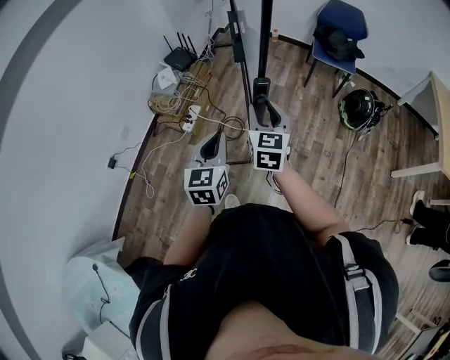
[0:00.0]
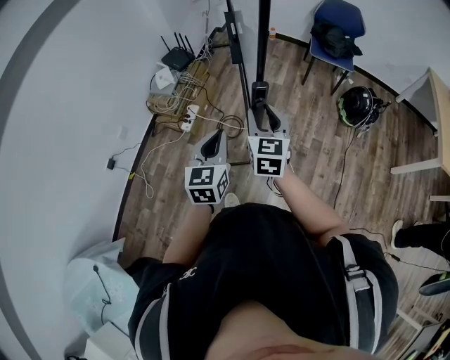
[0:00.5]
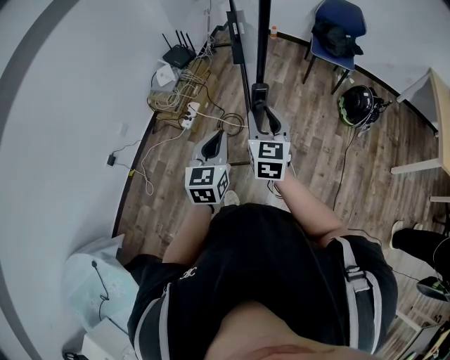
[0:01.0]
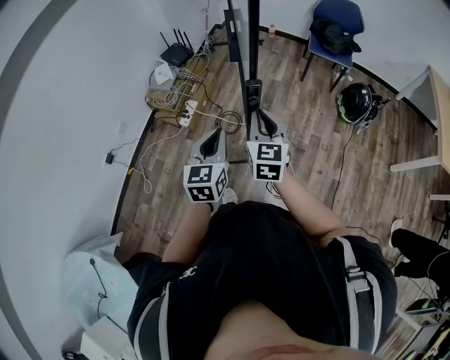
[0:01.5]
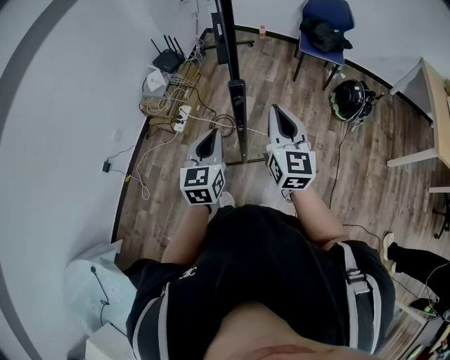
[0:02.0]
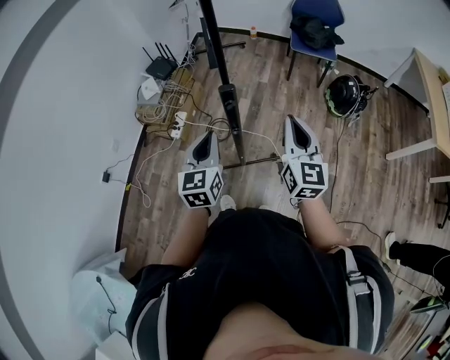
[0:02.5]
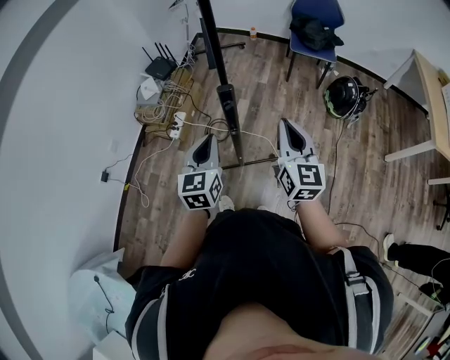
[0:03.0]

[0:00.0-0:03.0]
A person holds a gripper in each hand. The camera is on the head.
0:00.0 to 0:01.5: The right gripper shifts about 5 cm backward, and closes up.
0:01.5 to 0:03.0: The right gripper heads to the right, covering approximately 10 cm.

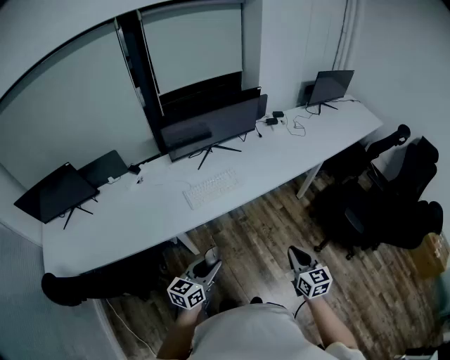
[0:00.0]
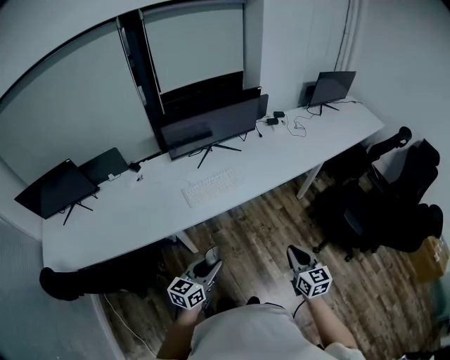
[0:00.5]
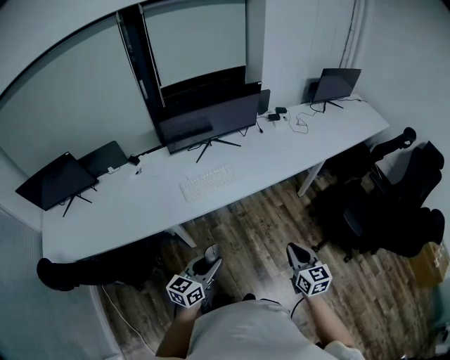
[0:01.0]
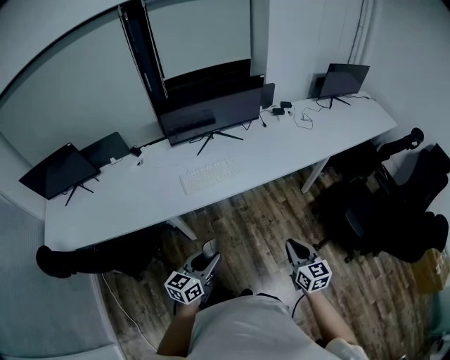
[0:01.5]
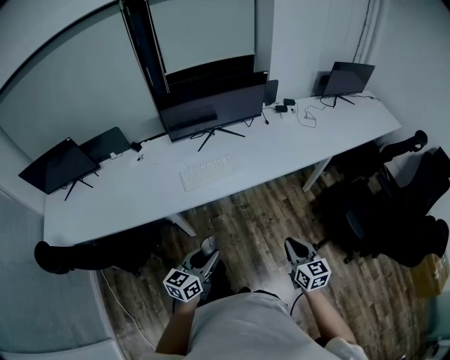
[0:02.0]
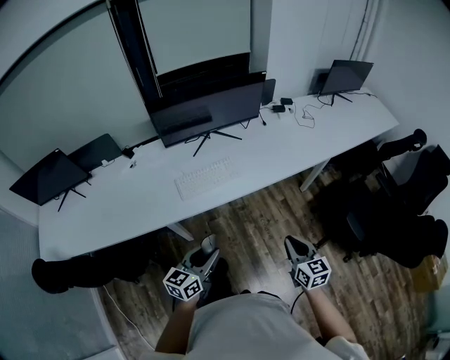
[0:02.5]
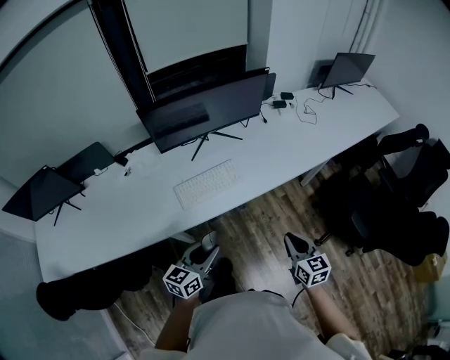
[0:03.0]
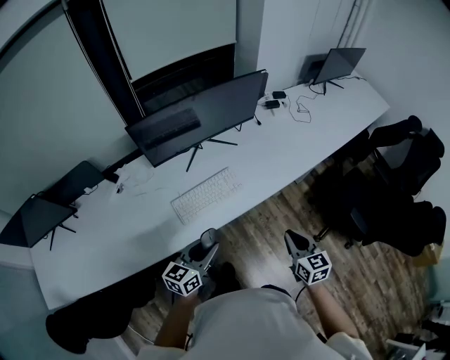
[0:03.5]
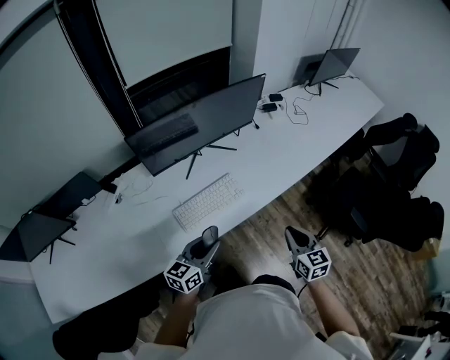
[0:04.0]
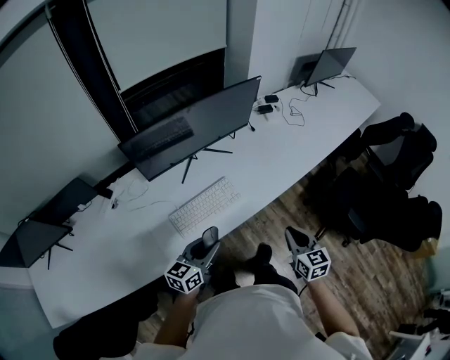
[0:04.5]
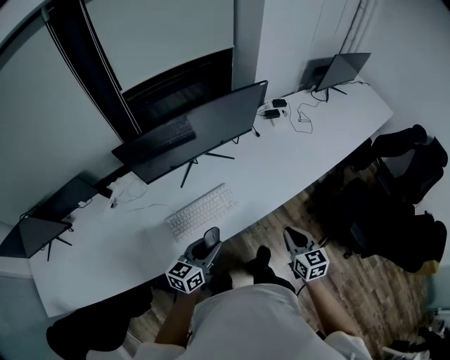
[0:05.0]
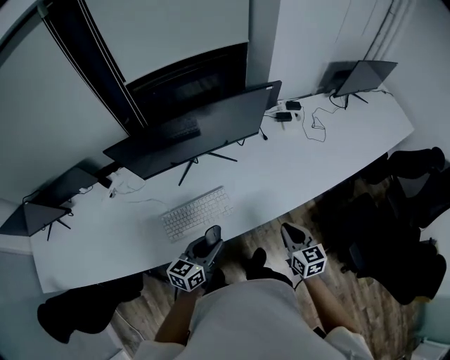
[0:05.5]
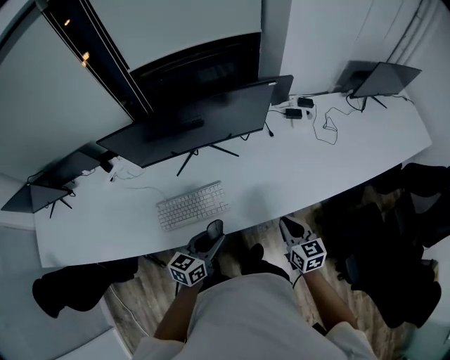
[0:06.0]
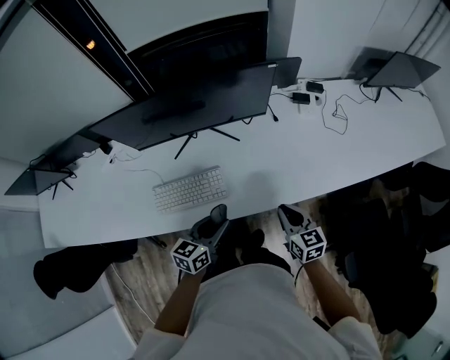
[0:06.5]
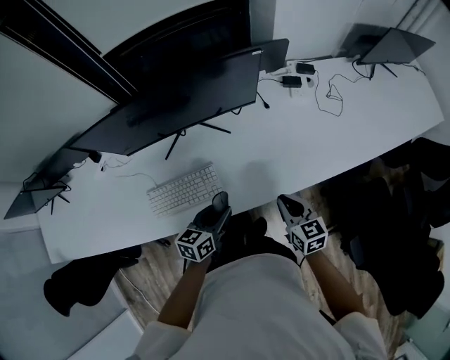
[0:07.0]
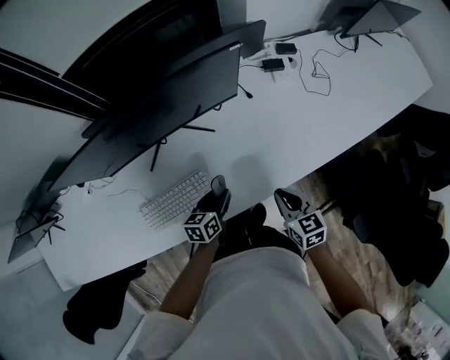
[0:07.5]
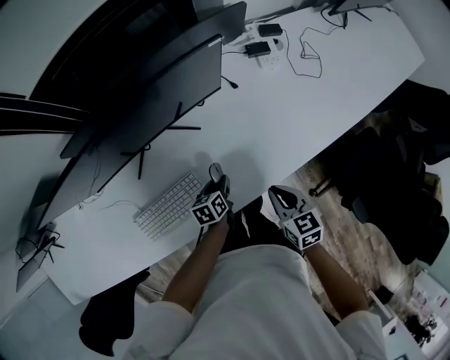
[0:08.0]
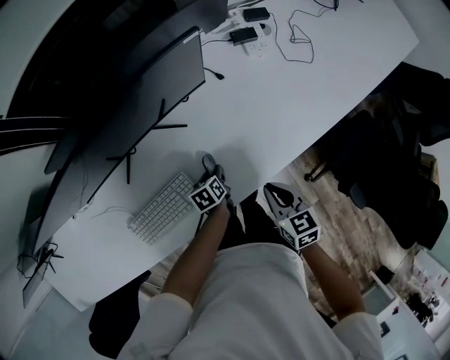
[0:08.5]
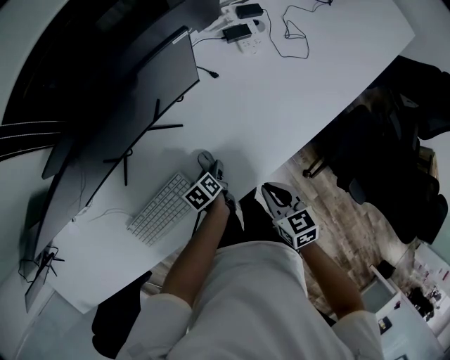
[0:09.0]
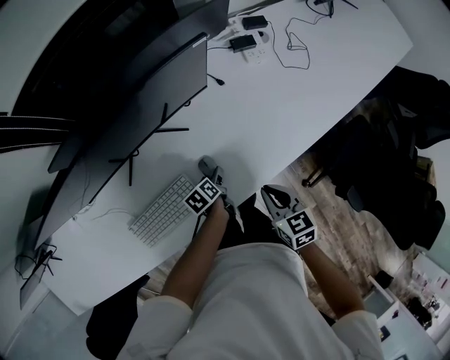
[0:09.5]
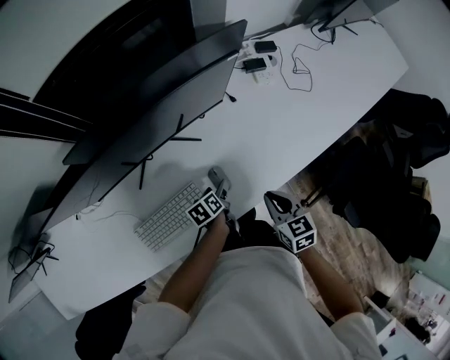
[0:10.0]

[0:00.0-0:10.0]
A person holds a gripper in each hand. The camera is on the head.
0:00.0 to 0:02.0: Both grippers move to the right, roughly 5 cm.
0:02.0 to 0:04.0: Both grippers travel together forward and to the left, approximately 25 cm.
0:04.0 to 0:06.0: The right gripper goes roughly 20 cm forward, and changes its angle by roughly 20 degrees; the left gripper moves to the right and forward, roughly 20 cm.
0:06.0 to 0:08.0: The left gripper is displaced downward and forward by about 25 cm, and changes its angle by approximately 30 degrees; the right gripper heads downward and forward, covering roughly 10 cm.
0:08.0 to 0:10.0: The left gripper opens.

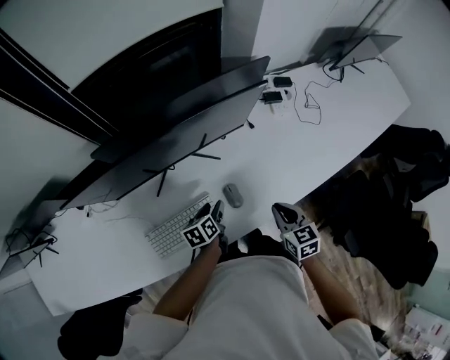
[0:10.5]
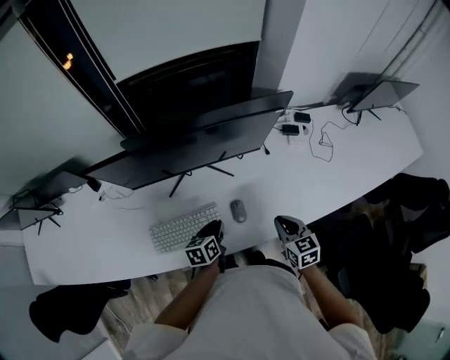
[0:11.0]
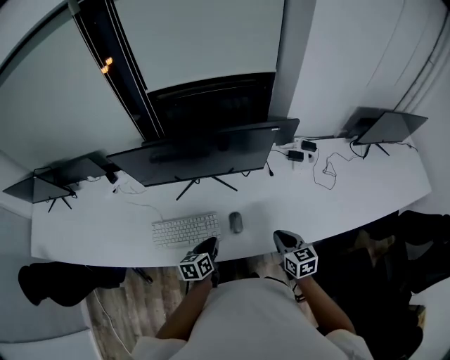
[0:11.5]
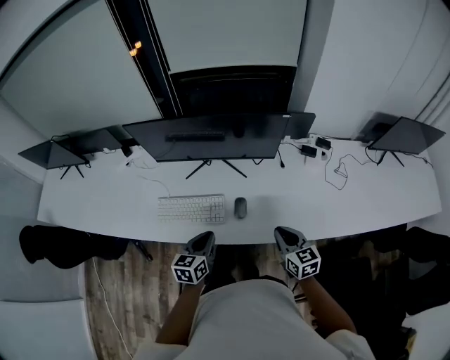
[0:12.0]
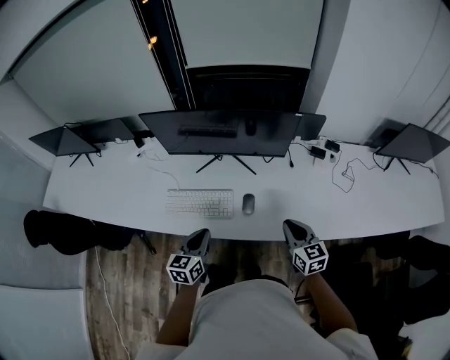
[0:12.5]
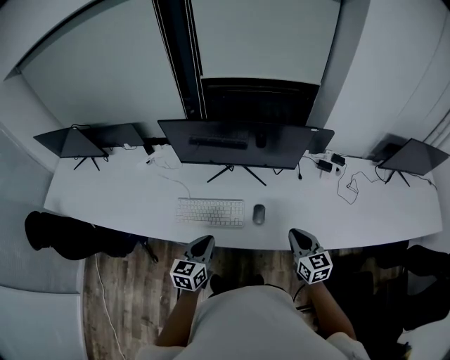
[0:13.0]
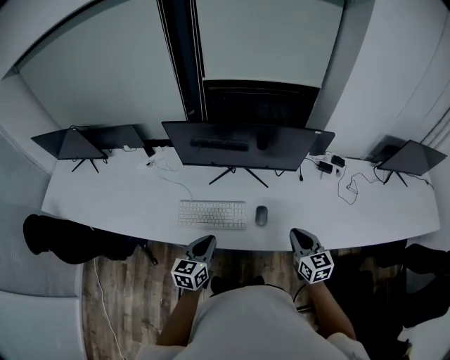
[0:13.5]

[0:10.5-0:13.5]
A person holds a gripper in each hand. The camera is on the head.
0:10.5 to 0:12.0: The right gripper moves upward, some 5 cm, and rotates approximately 30 degrees, while the left gripper changes place by some 20 cm, rotates some 30 degrees, and closes its fingers.
0:12.0 to 0:13.5: The left gripper shifts roughly 10 cm to the left. Meanwhile the right gripper ends up roughly 5 cm from where it was.

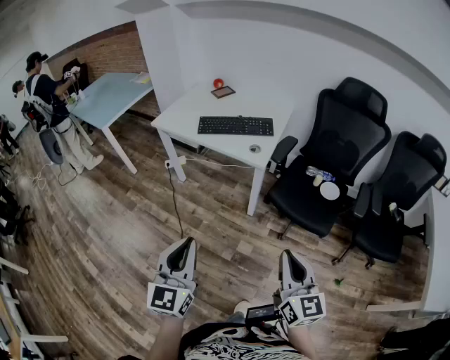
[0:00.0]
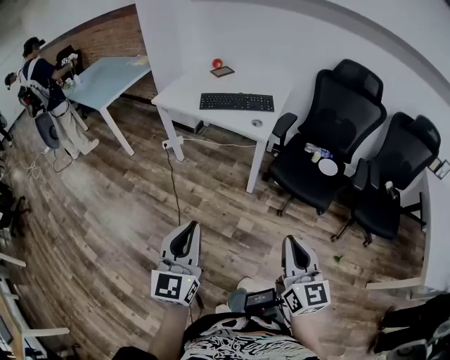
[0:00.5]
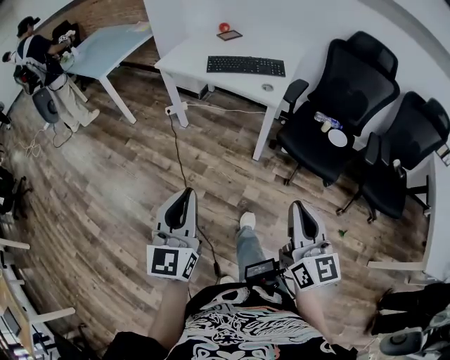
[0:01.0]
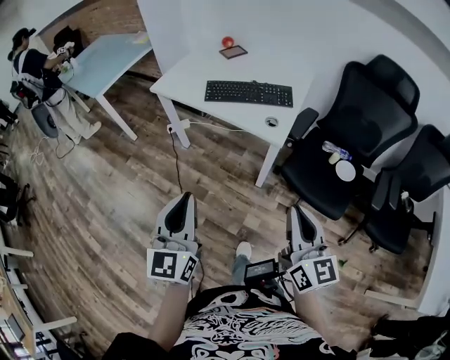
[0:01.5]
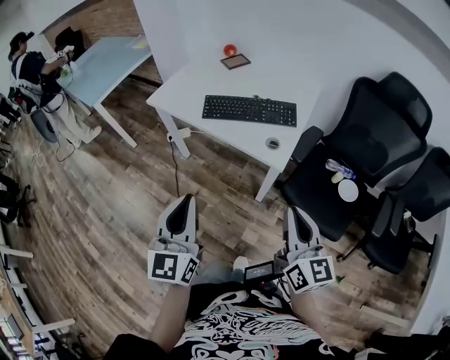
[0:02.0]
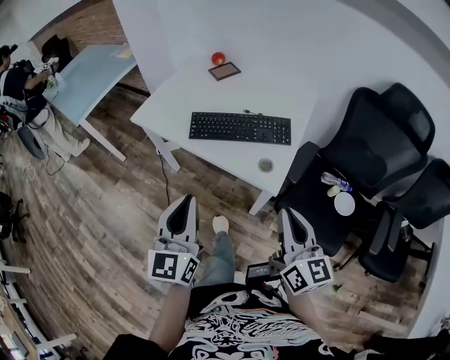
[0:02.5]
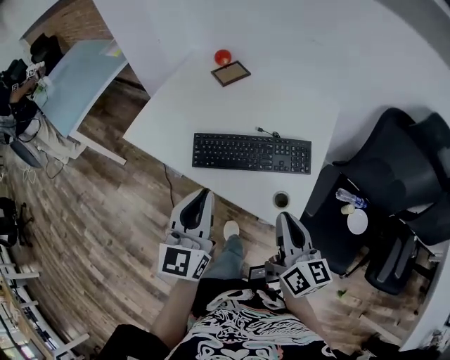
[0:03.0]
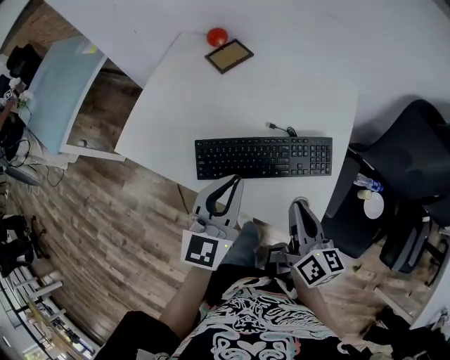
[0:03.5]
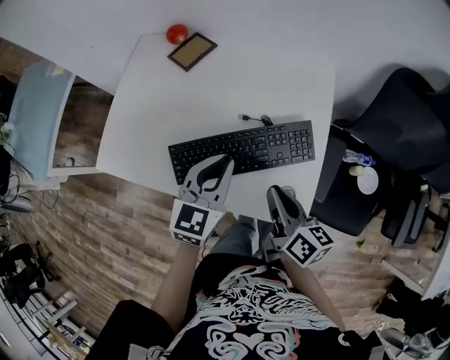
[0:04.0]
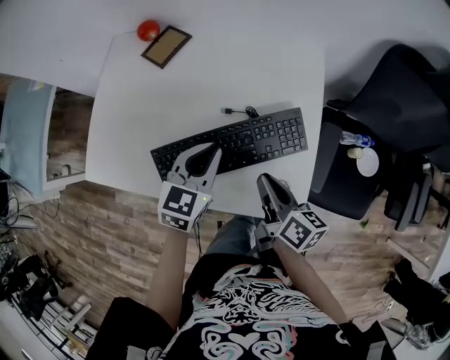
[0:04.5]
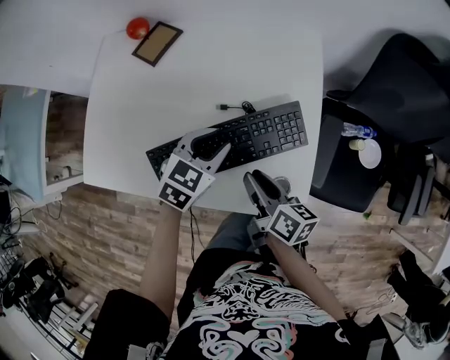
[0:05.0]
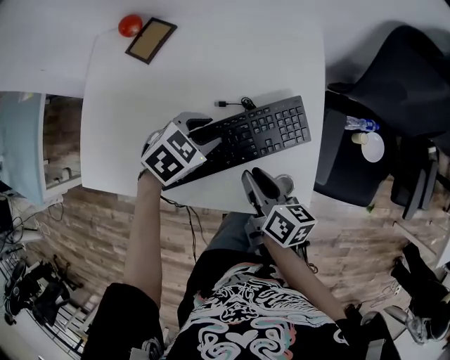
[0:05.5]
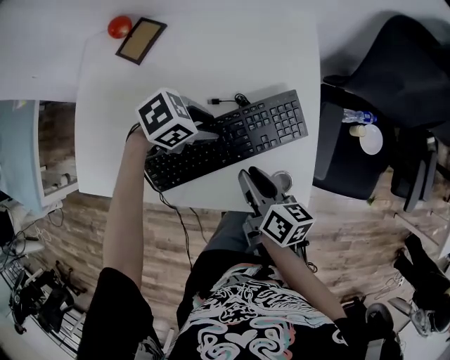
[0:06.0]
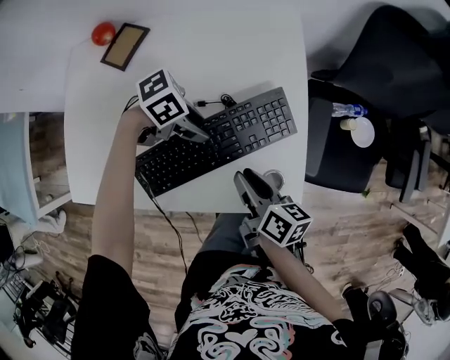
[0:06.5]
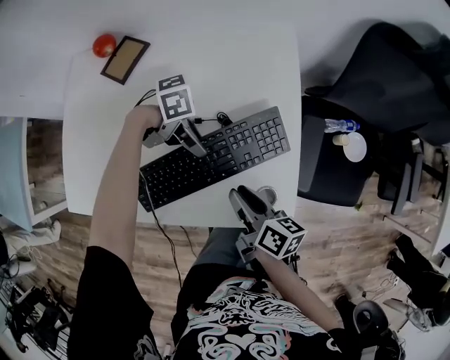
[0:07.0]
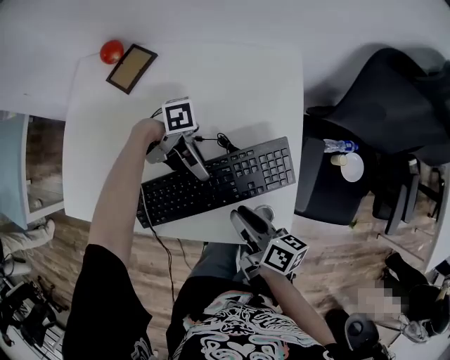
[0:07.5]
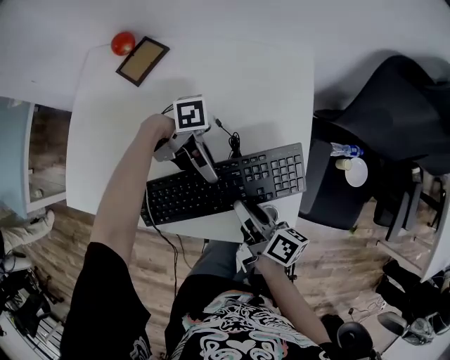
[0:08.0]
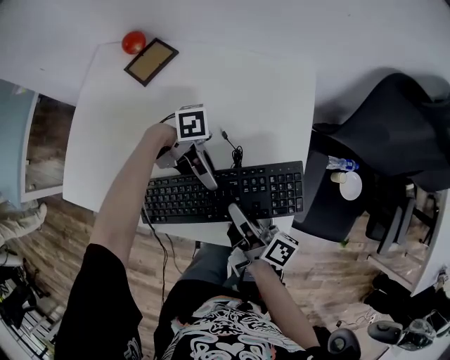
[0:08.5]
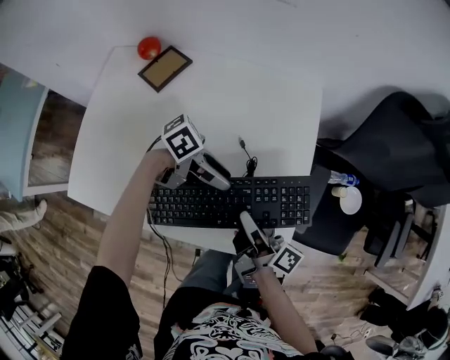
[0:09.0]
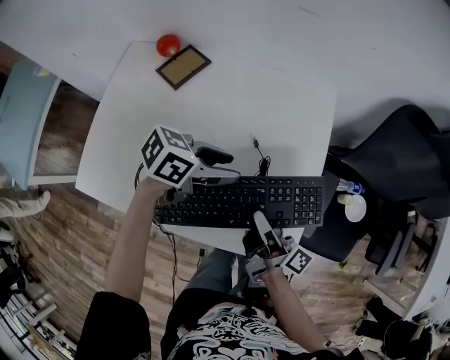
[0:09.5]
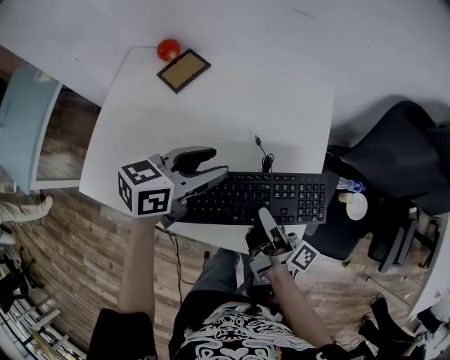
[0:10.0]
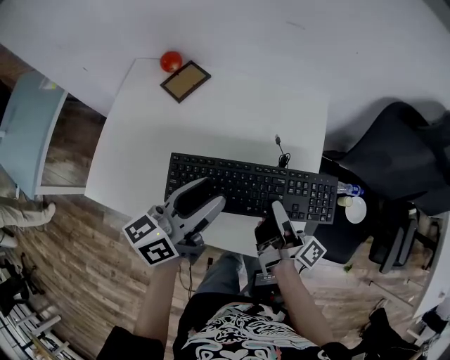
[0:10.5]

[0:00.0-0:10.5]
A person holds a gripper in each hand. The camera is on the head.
0:00.0 to 0:02.0: Both grippers move forward, some 30 cm.
0:02.0 to 0:04.0: Both grippers are carried forward, approximately 50 cm. The right gripper changes its angle by approximately 40 degrees. Meanwhile the left gripper turns by about 40 degrees.
0:04.0 to 0:06.5: The left gripper travels downward by some 15 cm, turns by approximately 90 degrees, and opens its fingers. Meanwhile the right gripper shifts some 10 cm downward, and opens up.
0:06.5 to 0:08.5: The left gripper points its fingers some 40 degrees further upward; the right gripper changes place by about 5 cm, and changes its angle by about 30 degrees.
0:08.5 to 0:10.5: The left gripper goes some 15 cm upward, changes its angle by roughly 110 degrees, and opens its fingers. Meanwhile the right gripper goes about 5 cm upward.
